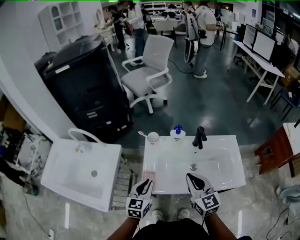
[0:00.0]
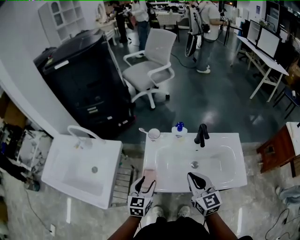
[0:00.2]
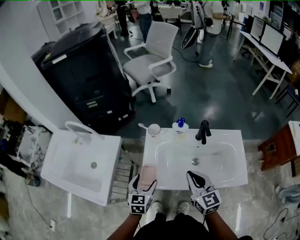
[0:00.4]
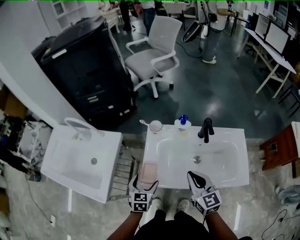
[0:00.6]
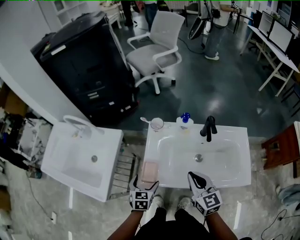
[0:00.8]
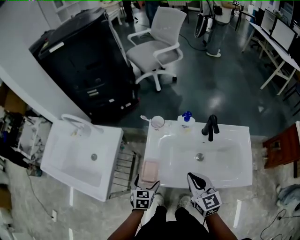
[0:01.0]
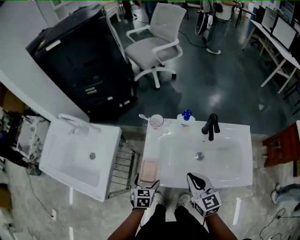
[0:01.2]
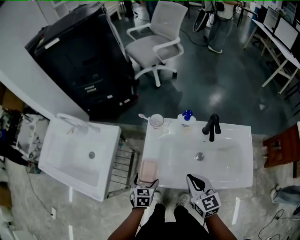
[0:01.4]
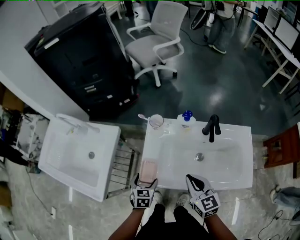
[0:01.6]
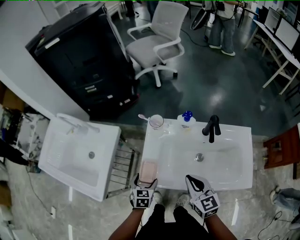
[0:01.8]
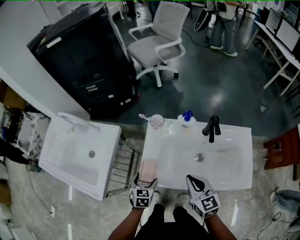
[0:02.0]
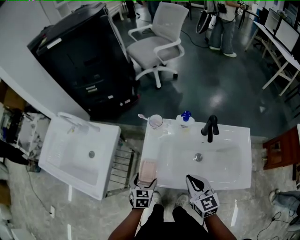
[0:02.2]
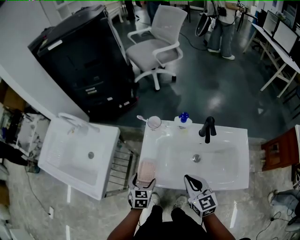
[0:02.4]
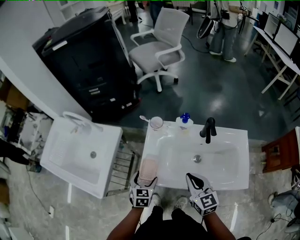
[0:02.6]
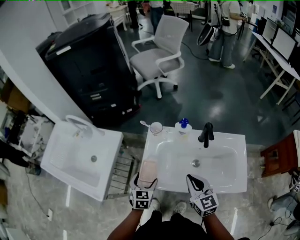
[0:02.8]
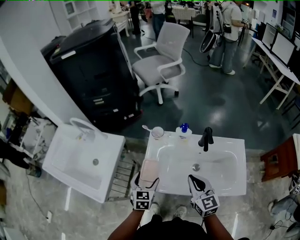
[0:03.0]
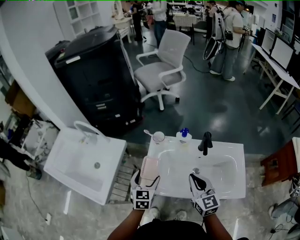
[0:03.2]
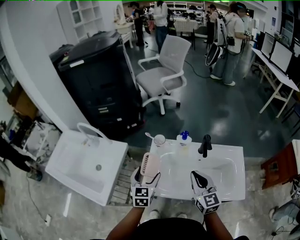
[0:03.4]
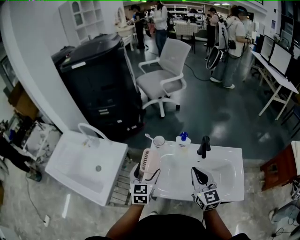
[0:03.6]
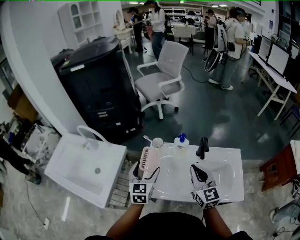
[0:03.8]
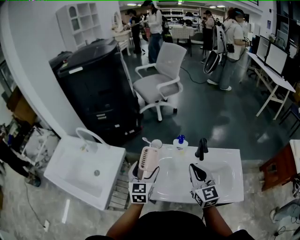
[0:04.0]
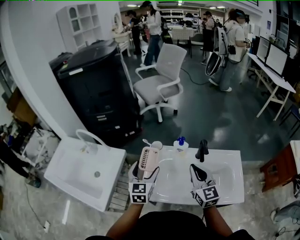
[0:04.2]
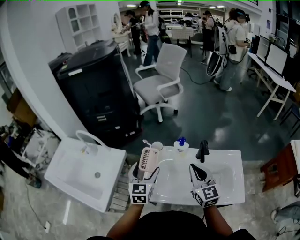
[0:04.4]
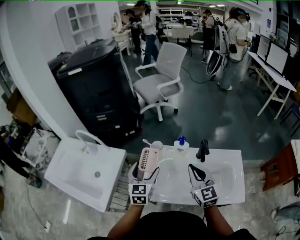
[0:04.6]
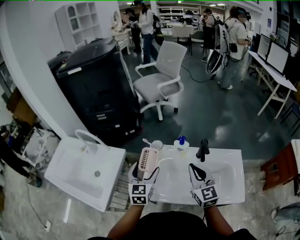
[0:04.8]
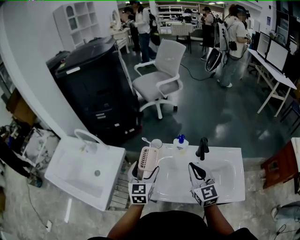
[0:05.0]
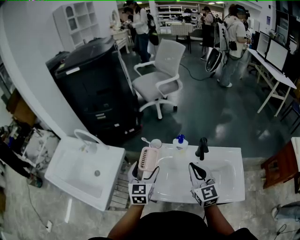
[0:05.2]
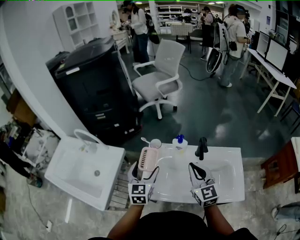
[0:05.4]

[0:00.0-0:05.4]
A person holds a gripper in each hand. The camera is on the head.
0.0 to 1.4 s: The right gripper travels downward by approximately 10 cm, while the left gripper moves downward, about 15 cm, changes its angle by roughly 30 degrees, and opens.
1.4 to 2.8 s: The left gripper is displaced upward by some 5 cm.
2.8 to 4.0 s: The left gripper heads upward and forward, covering some 20 cm, and changes its angle by approximately 20 degrees, while the right gripper shifts about 10 cm upward and forward.
4.0 to 5.4 s: Neither gripper changes place.

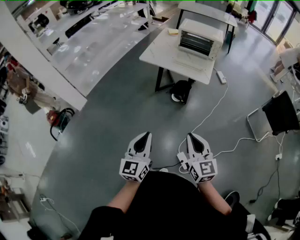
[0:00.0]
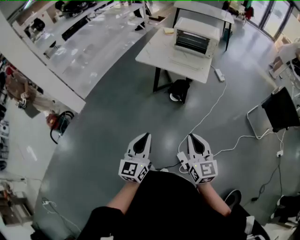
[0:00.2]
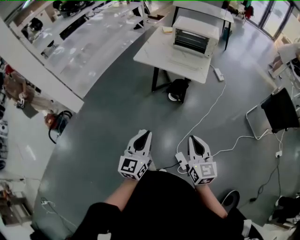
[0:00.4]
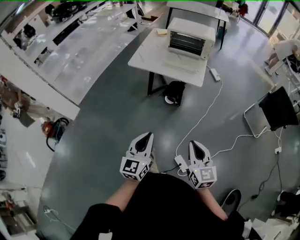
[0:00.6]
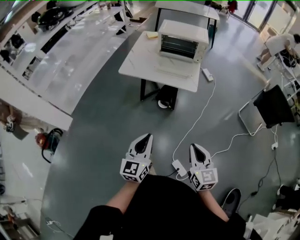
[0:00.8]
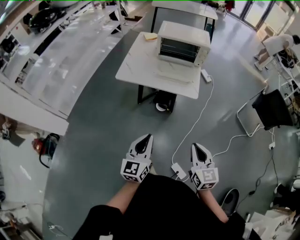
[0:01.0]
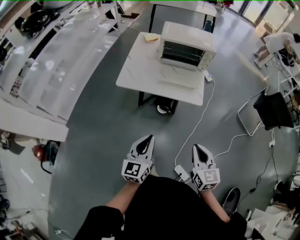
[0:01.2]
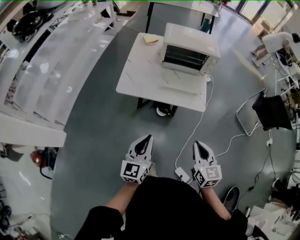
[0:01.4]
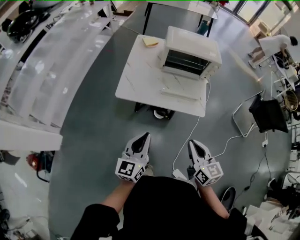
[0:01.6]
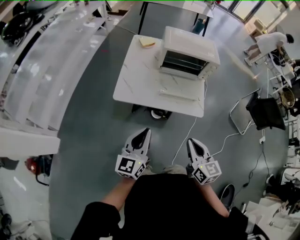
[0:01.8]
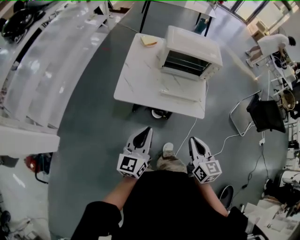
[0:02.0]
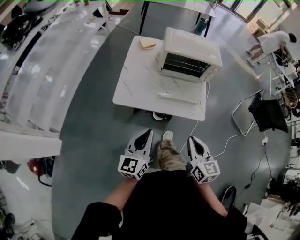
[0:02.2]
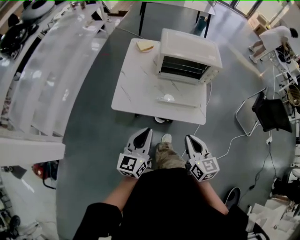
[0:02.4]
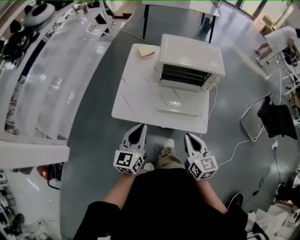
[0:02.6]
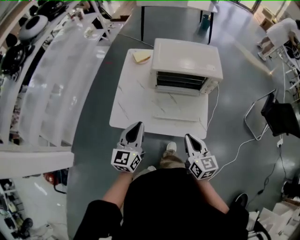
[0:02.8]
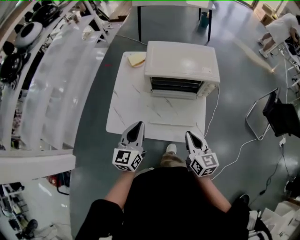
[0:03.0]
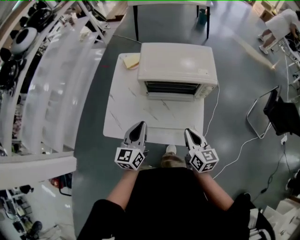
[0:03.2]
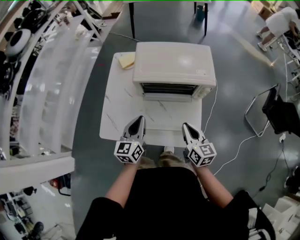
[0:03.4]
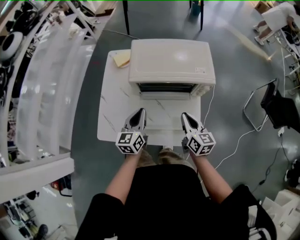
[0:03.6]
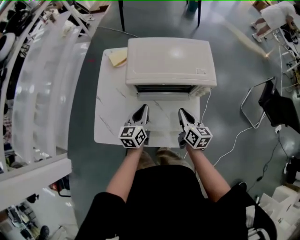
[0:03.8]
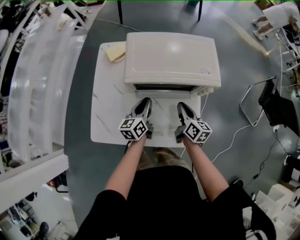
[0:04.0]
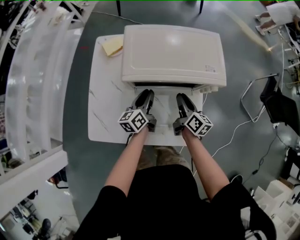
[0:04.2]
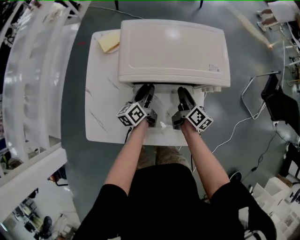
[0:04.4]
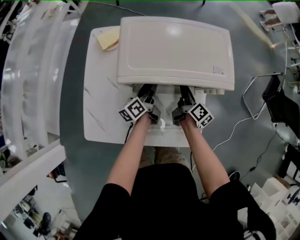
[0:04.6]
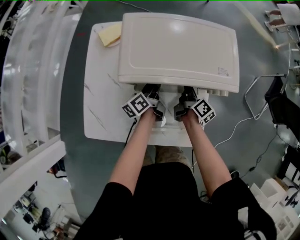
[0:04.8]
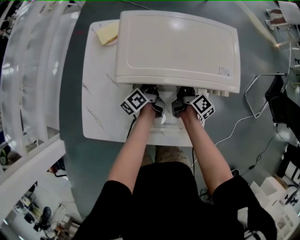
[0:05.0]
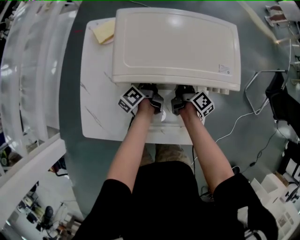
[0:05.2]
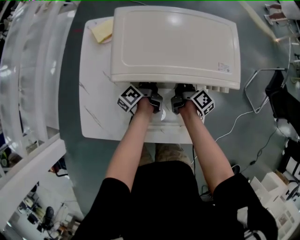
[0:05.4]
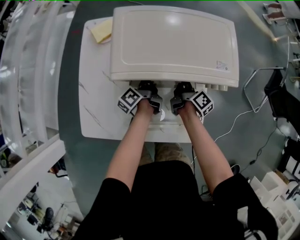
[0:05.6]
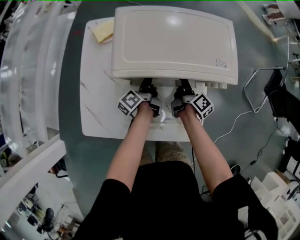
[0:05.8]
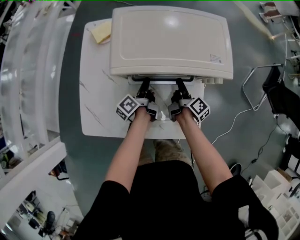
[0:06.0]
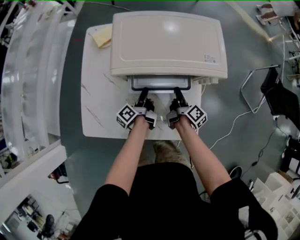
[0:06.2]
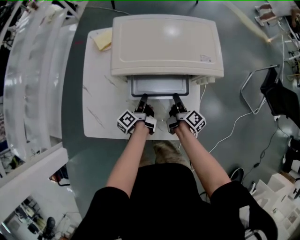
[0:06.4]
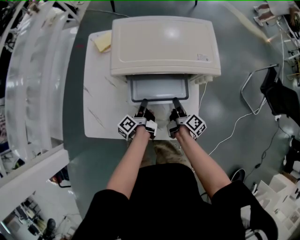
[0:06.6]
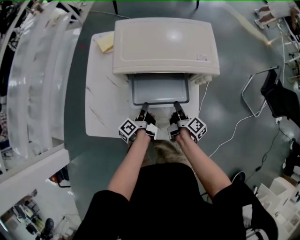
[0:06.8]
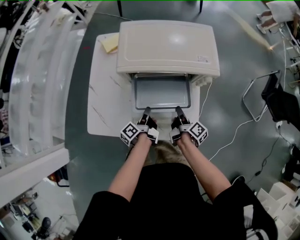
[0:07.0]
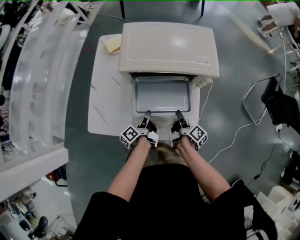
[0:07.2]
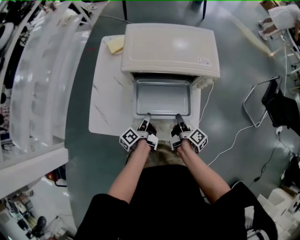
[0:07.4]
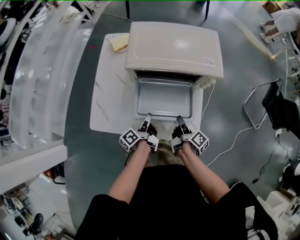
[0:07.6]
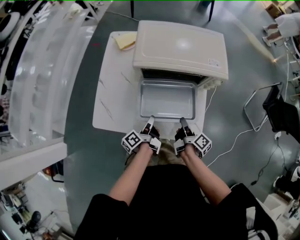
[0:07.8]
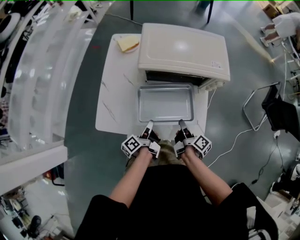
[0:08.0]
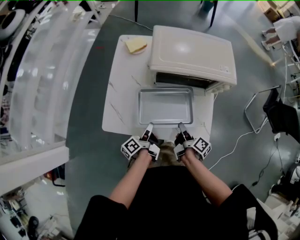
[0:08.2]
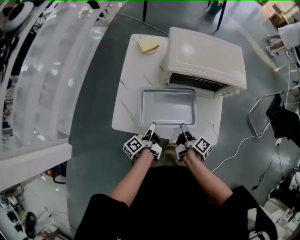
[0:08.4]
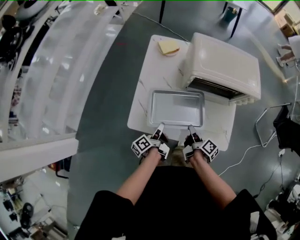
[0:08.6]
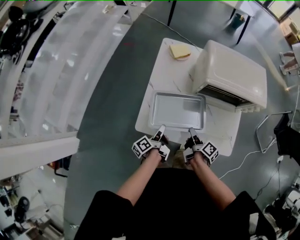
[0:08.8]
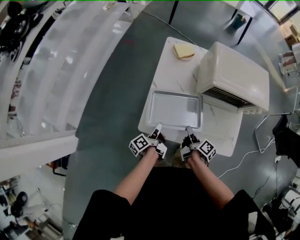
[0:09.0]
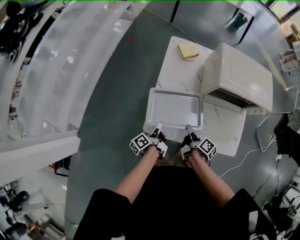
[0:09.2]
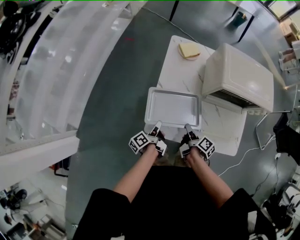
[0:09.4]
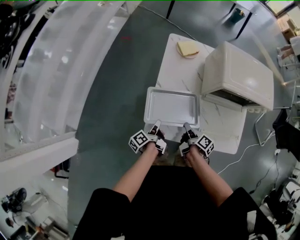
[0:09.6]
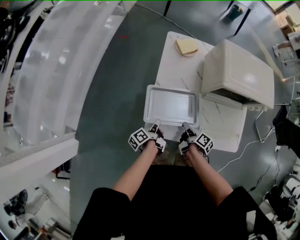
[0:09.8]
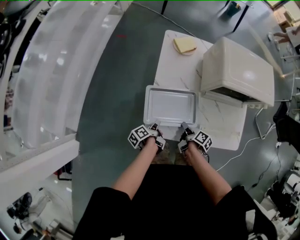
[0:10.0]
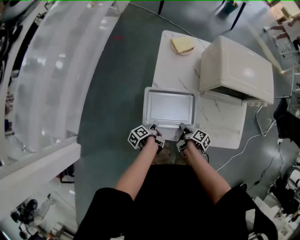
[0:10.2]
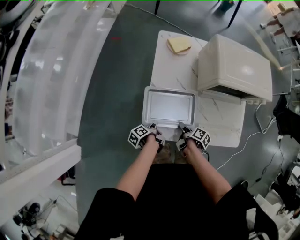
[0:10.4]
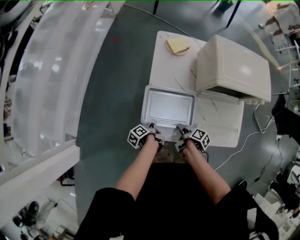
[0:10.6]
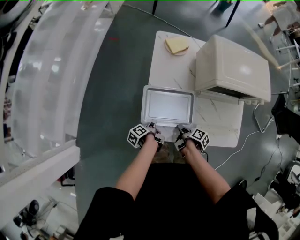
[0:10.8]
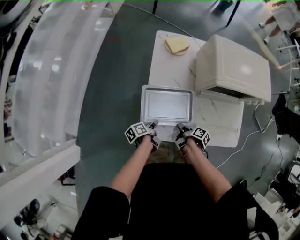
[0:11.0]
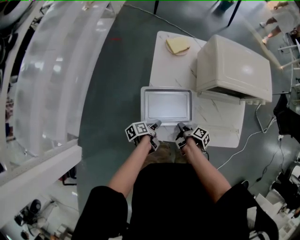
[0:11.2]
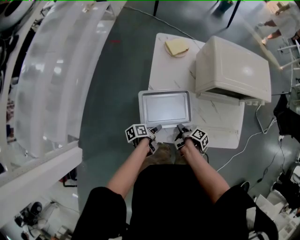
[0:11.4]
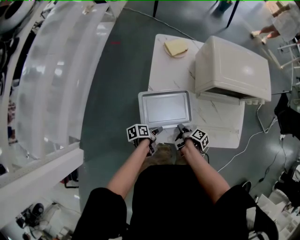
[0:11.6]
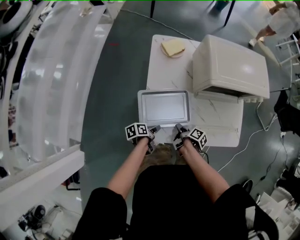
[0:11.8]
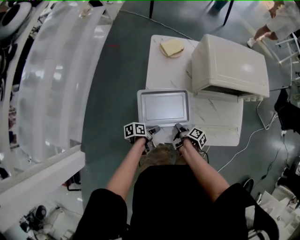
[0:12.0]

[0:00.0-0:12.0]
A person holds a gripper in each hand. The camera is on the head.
0.0 to 1.6 s: The right gripper ends up roughly 40 cm from where it was.
1.6 to 3.0 s: The right gripper shifts by approximately 30 cm.
3.0 to 4.4 s: The right gripper changes place by approximately 35 cm, changes its angle by roughly 40 degrees, and opens up.
4.4 to 6.0 s: The right gripper turns by approximately 20 degrees.
6.0 to 7.6 s: The right gripper changes place by about 20 cm.
7.6 to 9.0 s: The right gripper ends up approximately 30 cm from where it was.
9.0 to 10.4 s: The right gripper is displaced downward by about 10 cm, and swivels about 20 degrees.
10.4 to 12.0 s: The right gripper closes its fingers.

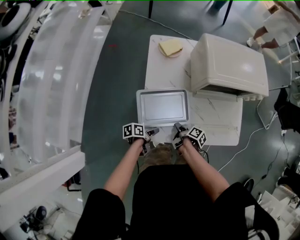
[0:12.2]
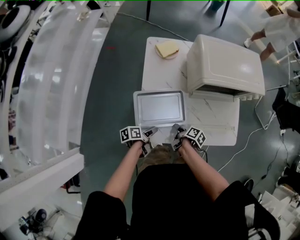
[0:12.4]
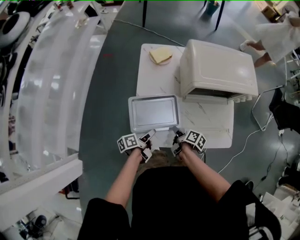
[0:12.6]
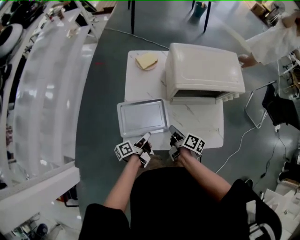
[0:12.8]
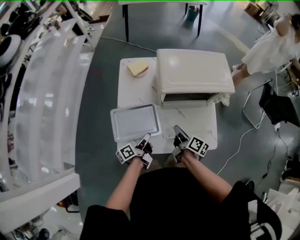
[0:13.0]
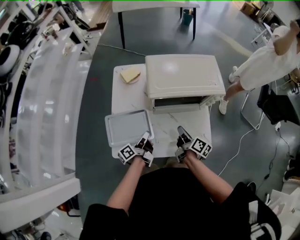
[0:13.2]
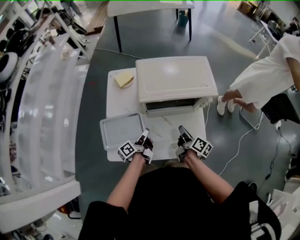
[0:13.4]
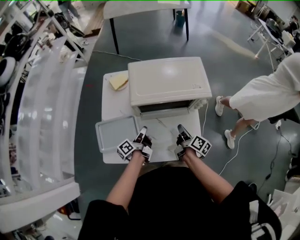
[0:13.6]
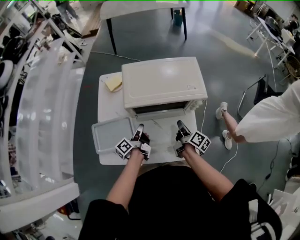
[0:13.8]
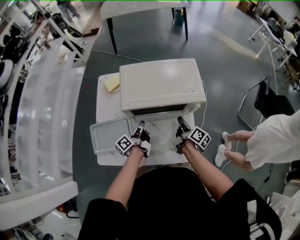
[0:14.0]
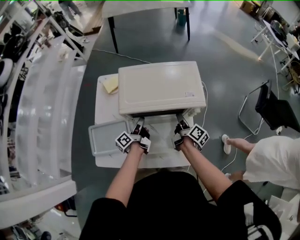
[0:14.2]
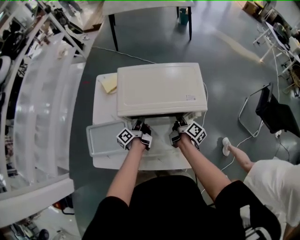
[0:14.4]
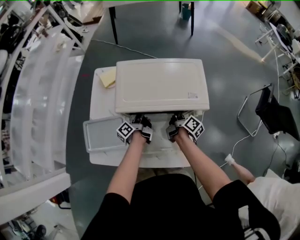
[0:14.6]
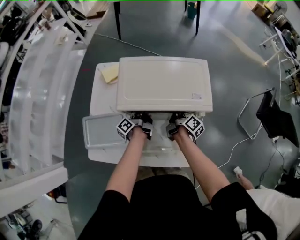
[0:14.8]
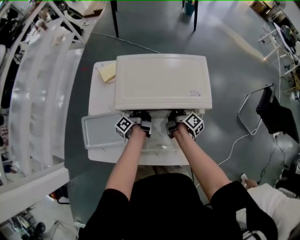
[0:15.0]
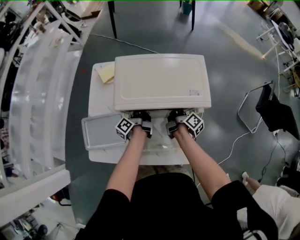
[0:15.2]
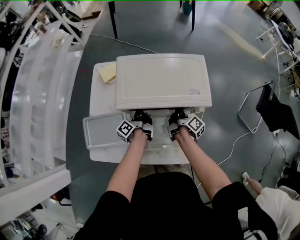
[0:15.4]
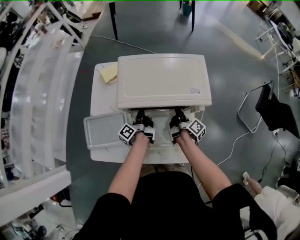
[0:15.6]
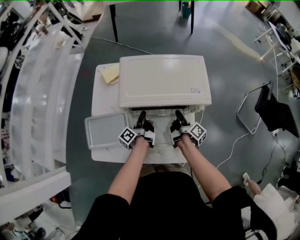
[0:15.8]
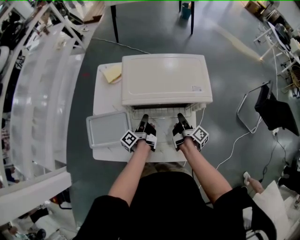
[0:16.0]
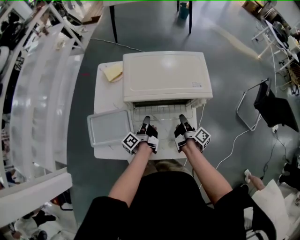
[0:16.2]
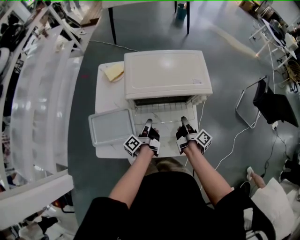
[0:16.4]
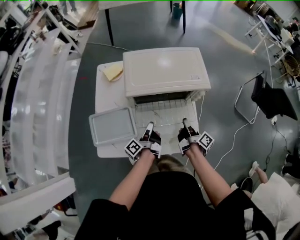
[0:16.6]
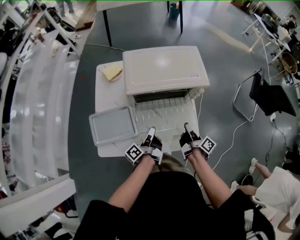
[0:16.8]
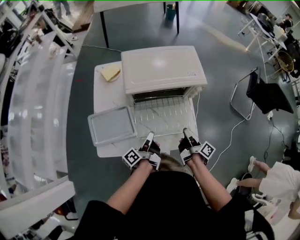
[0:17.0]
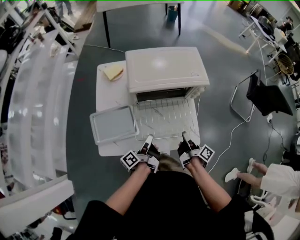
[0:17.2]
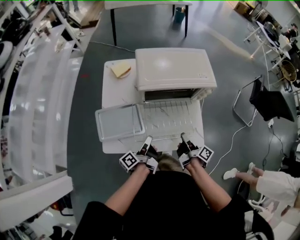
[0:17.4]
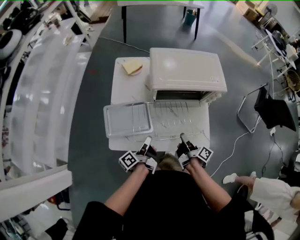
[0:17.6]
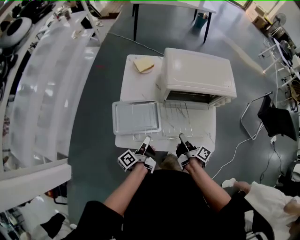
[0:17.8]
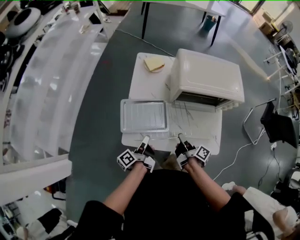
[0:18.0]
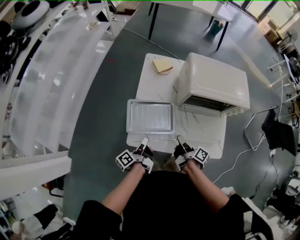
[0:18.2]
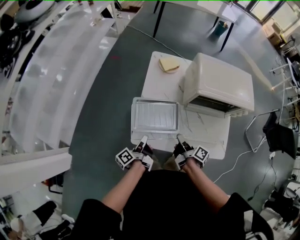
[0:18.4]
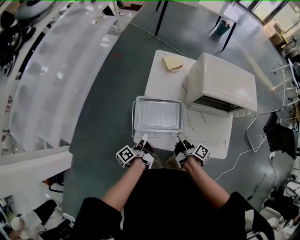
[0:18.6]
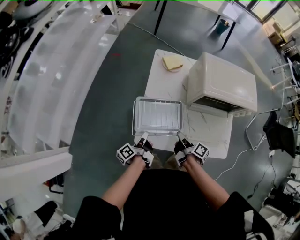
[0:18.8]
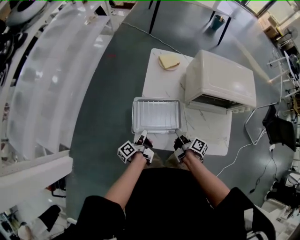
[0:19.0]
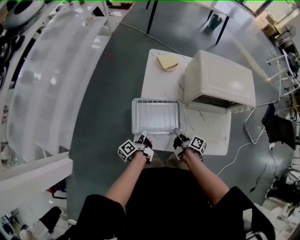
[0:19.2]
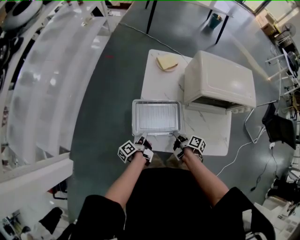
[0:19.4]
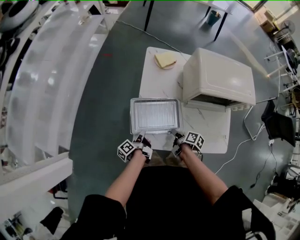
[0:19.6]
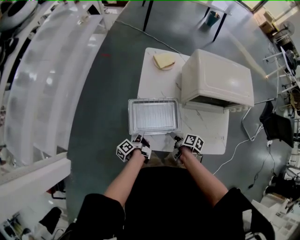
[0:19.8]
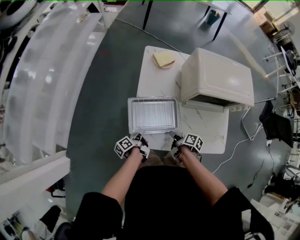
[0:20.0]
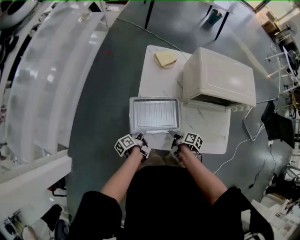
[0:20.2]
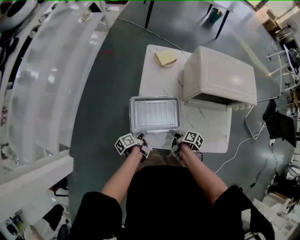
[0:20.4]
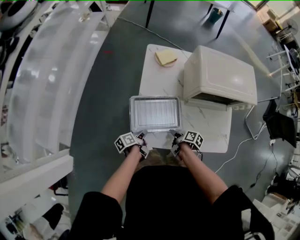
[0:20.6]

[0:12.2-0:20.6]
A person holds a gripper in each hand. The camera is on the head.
12.2 to 13.6 s: The right gripper shifts by about 40 cm, and rotates about 30 degrees.
13.6 to 15.0 s: The right gripper ends up roughly 20 cm from where it was, and opens and closes again.
15.0 to 16.4 s: The right gripper shifts by approximately 15 cm.
16.4 to 17.8 s: The right gripper moves roughly 20 cm.
17.8 to 19.2 s: The right gripper changes place by approximately 20 cm.
19.2 to 20.6 s: The right gripper changes place by about 5 cm, swivels approximately 20 degrees, and opens and closes again.
